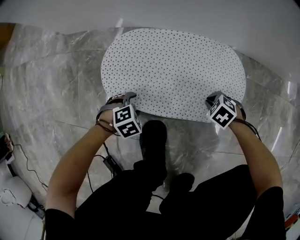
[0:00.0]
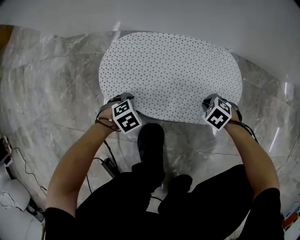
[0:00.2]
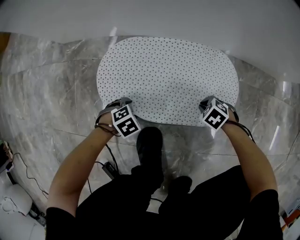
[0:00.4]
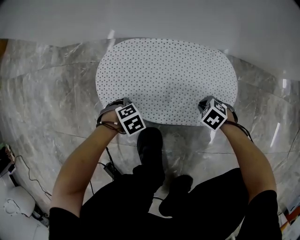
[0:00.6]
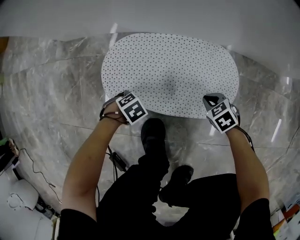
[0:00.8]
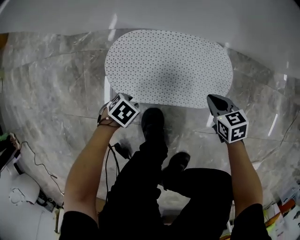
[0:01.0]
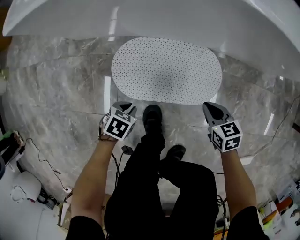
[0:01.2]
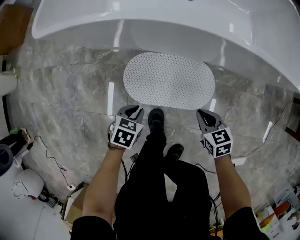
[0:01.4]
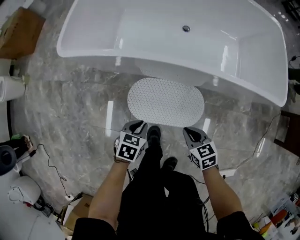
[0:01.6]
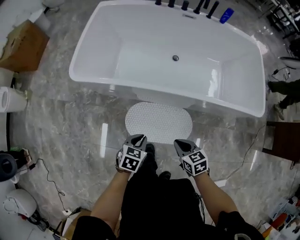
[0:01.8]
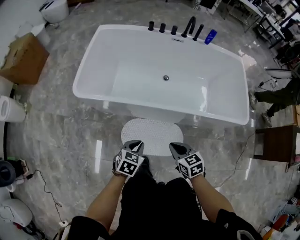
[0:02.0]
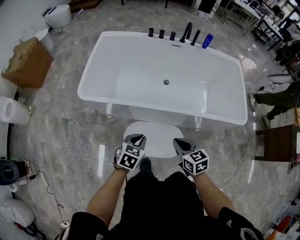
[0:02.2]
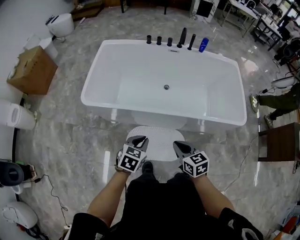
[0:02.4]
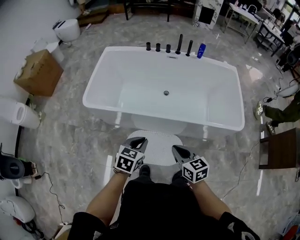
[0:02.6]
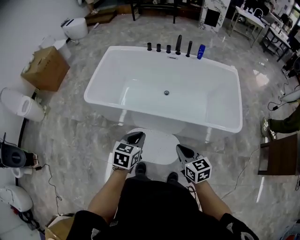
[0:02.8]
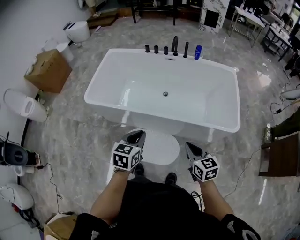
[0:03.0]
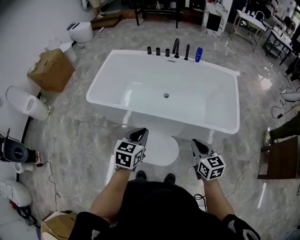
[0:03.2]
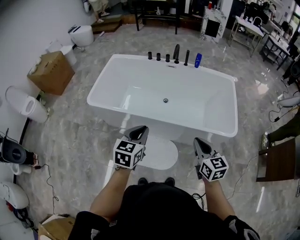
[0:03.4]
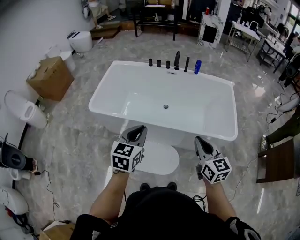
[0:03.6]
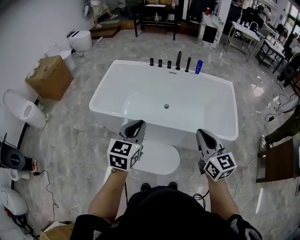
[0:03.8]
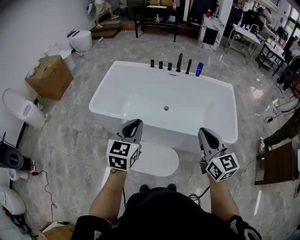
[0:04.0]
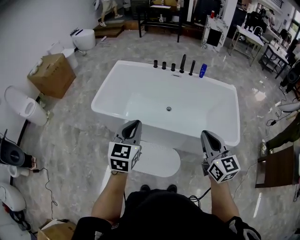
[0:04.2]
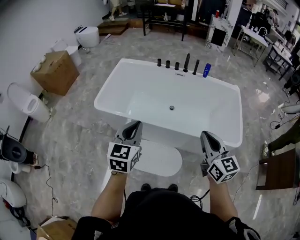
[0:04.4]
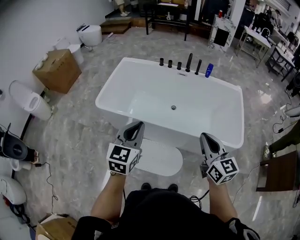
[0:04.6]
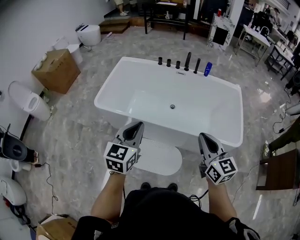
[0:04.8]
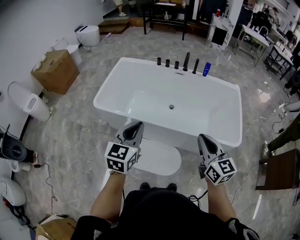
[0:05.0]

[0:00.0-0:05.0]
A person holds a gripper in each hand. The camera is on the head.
0:00.0 to 0:01.6: Both grippers move upward, some 60 cm. The right gripper angles its fingers upward, by roughly 30 degrees. The left gripper rotates around the line of its fingers by some 50 degrees, counterclockwise from behind, and closes up.
0:01.6 to 0:03.4: Both grippers travel together upward and to the right, roughly 50 cm. The right gripper tips its fingers upward by roughly 30 degrees, while the left gripper tips its fingers upward by about 30 degrees.
0:03.4 to 0:05.0: The left gripper travels to the left and upward by approximately 10 cm; the right gripper goes roughly 10 cm upward and to the left.

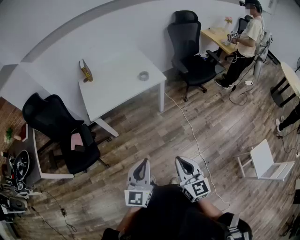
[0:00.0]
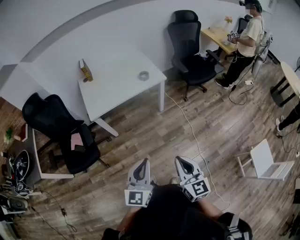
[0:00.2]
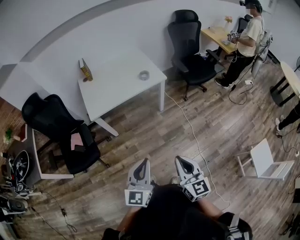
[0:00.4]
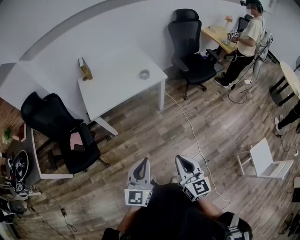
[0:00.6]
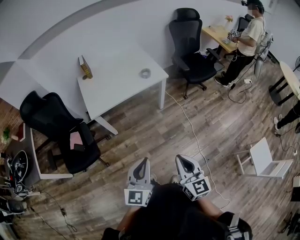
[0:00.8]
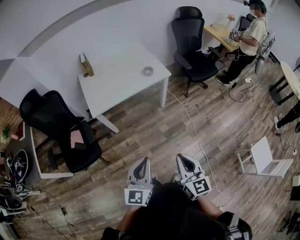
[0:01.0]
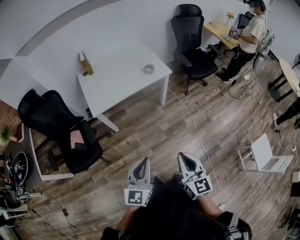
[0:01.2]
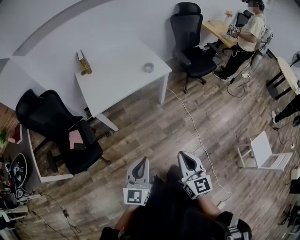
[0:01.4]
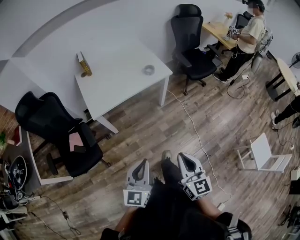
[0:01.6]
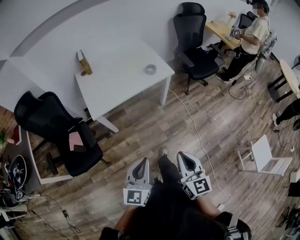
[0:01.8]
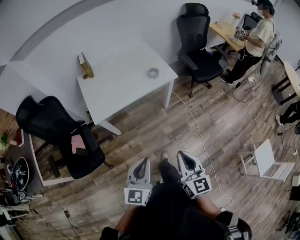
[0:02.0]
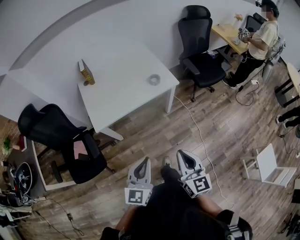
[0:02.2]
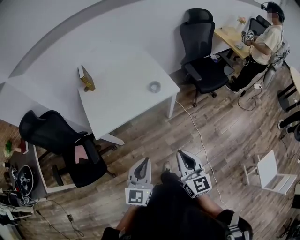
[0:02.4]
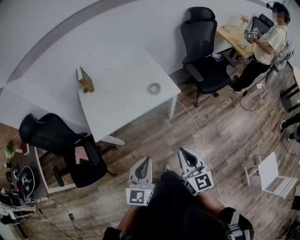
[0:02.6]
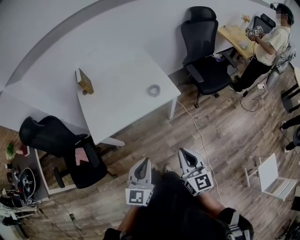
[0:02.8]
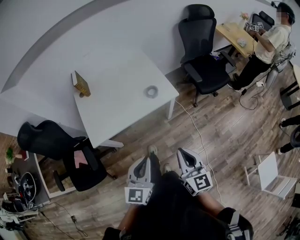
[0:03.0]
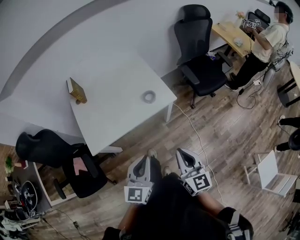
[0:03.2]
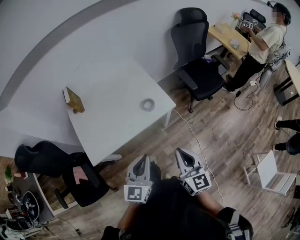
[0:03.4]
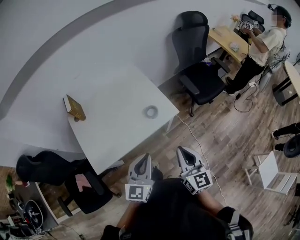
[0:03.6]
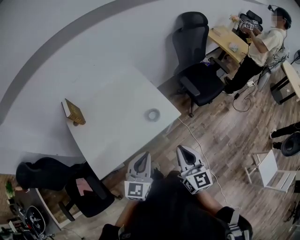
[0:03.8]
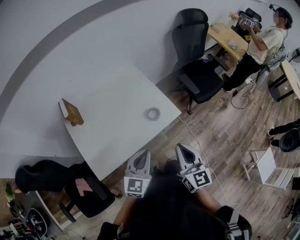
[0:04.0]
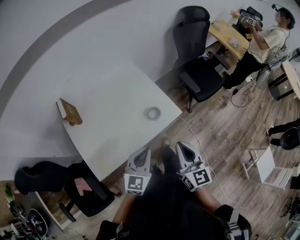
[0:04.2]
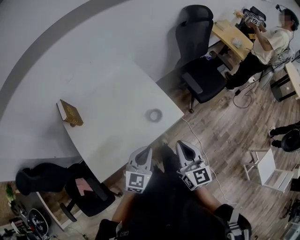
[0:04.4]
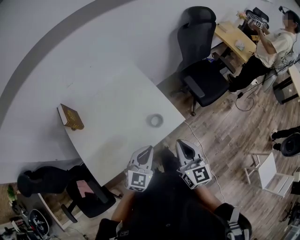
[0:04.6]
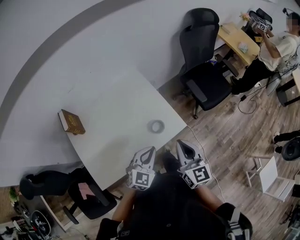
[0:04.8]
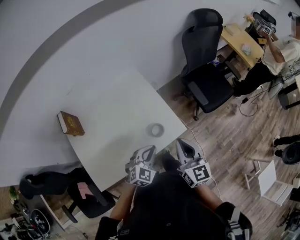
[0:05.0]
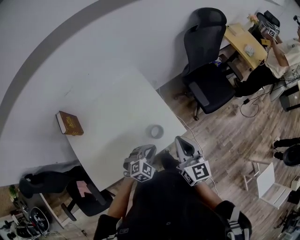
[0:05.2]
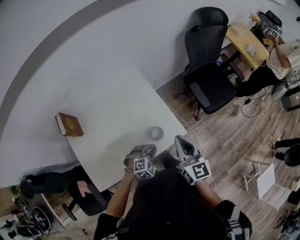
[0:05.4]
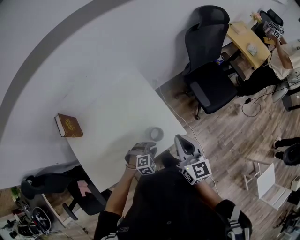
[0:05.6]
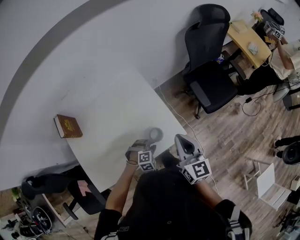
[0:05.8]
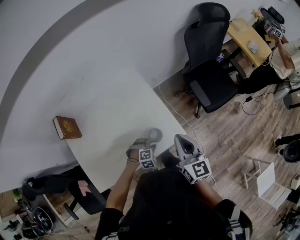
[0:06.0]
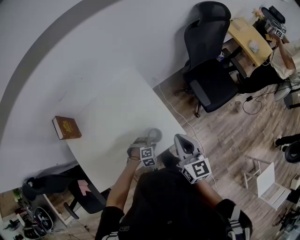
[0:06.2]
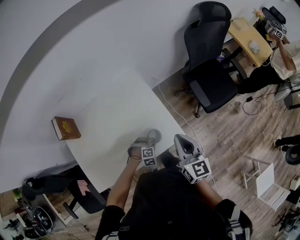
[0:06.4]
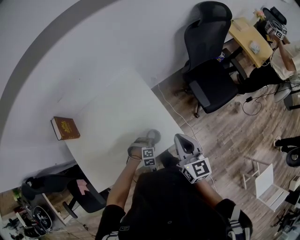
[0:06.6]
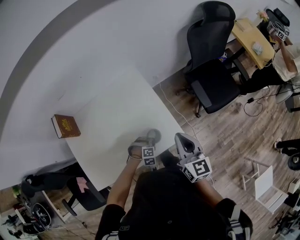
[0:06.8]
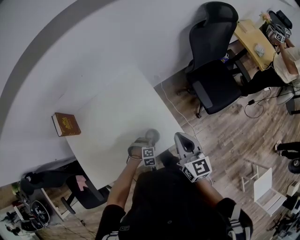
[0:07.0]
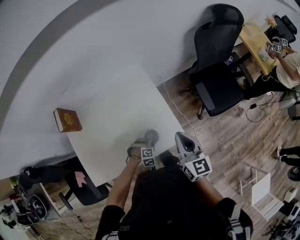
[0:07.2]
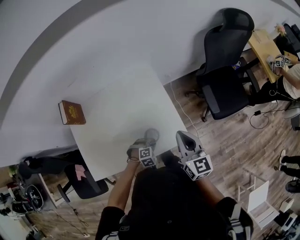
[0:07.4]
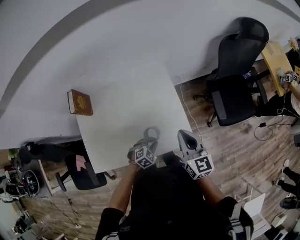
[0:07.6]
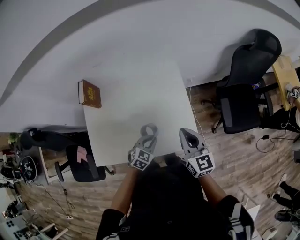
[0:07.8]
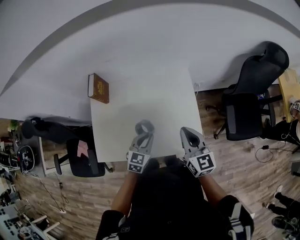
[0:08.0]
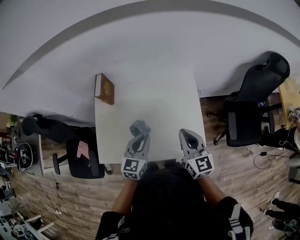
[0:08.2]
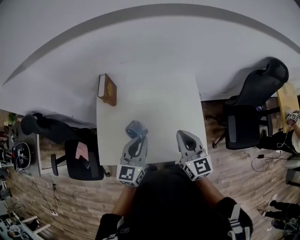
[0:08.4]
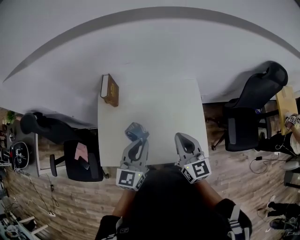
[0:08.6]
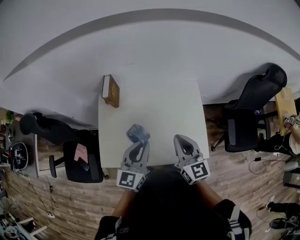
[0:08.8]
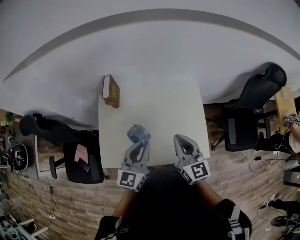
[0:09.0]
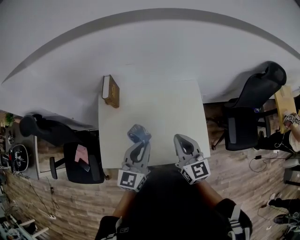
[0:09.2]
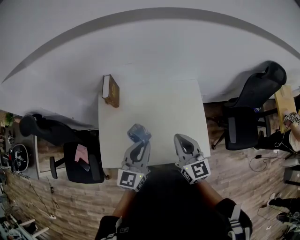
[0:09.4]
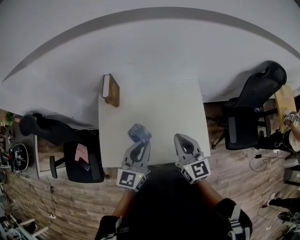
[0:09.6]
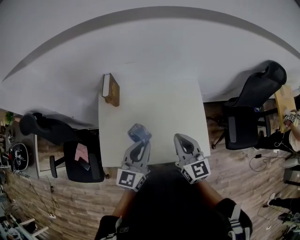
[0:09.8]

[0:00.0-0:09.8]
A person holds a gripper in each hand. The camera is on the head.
0:00.0 to 0:01.4: Both grippers travel together to the left, some 10 cm.
0:01.4 to 0:02.8: Both grippers travel together forward, roughly 25 cm.
0:02.8 to 0:04.2: Both grippers move forward, some 25 cm. The left gripper changes its angle by approximately 20 degrees.
0:04.2 to 0:05.6: The right gripper shifts approximately 20 cm forward; the left gripper shifts approximately 30 cm downward and forward, tips its fingers downward by some 40 degrees, and opens.
0:05.6 to 0:07.0: The right gripper changes place by roughly 5 cm. Meanwhile the left gripper heads downward, covering approximately 10 cm.
0:07.0 to 0:08.4: The right gripper shifts by about 20 cm, and rotates some 30 degrees, while the left gripper travels upward by approximately 35 cm, and tips its fingers upward by roughly 60 degrees.
0:08.4 to 0:09.8: The right gripper travels to the left by approximately 5 cm.

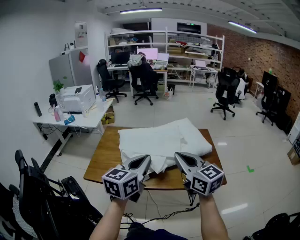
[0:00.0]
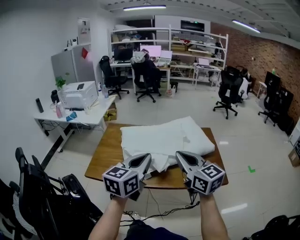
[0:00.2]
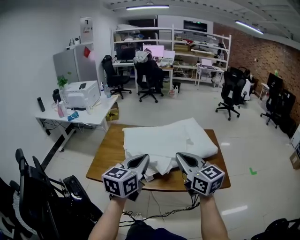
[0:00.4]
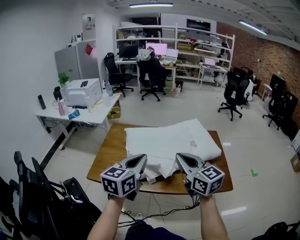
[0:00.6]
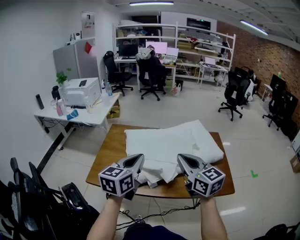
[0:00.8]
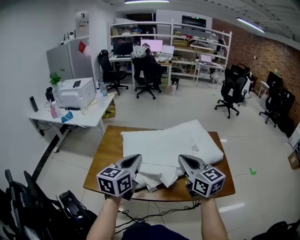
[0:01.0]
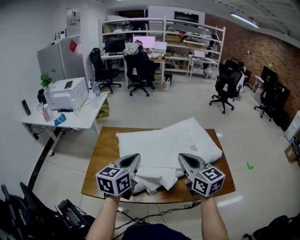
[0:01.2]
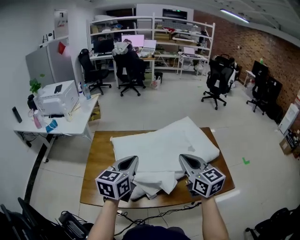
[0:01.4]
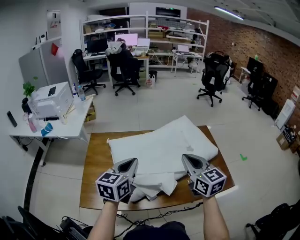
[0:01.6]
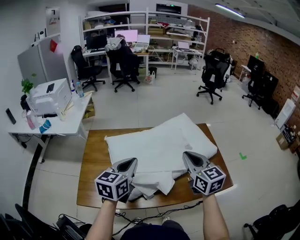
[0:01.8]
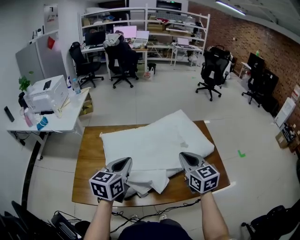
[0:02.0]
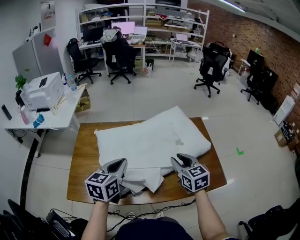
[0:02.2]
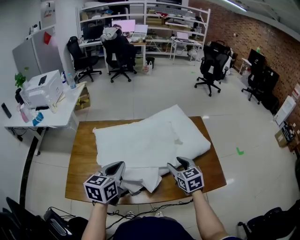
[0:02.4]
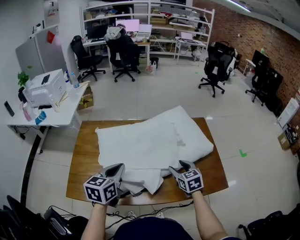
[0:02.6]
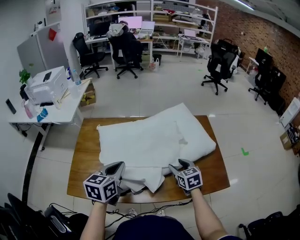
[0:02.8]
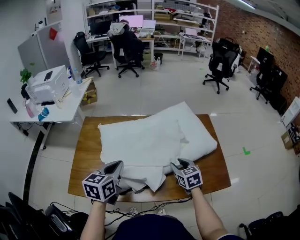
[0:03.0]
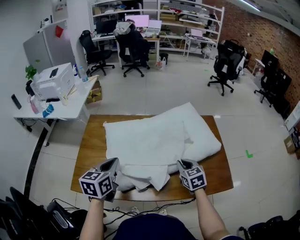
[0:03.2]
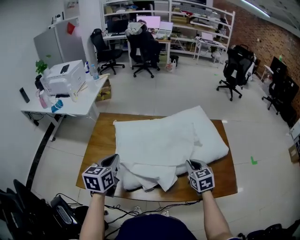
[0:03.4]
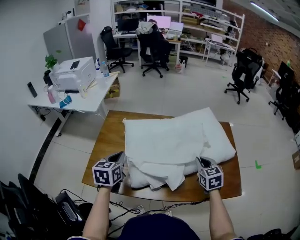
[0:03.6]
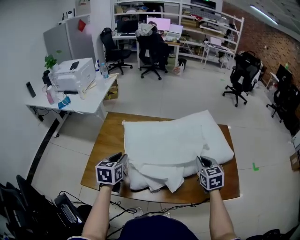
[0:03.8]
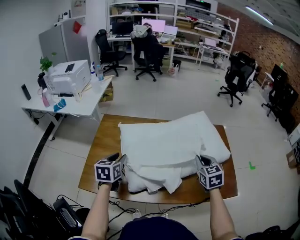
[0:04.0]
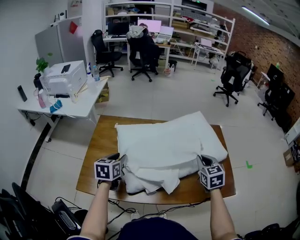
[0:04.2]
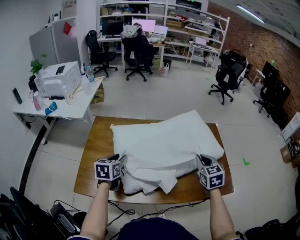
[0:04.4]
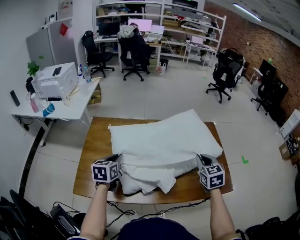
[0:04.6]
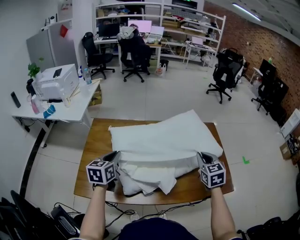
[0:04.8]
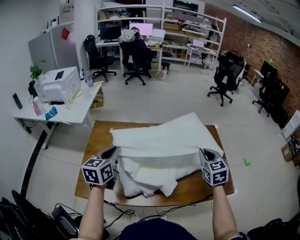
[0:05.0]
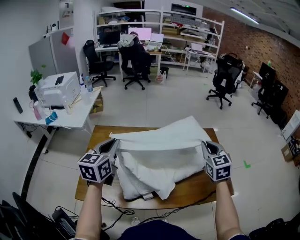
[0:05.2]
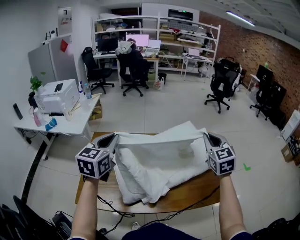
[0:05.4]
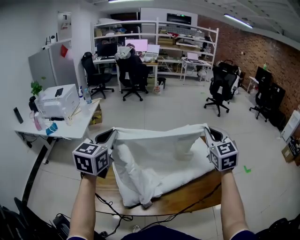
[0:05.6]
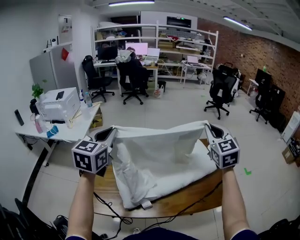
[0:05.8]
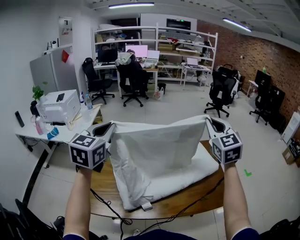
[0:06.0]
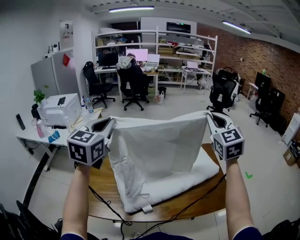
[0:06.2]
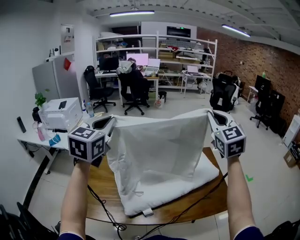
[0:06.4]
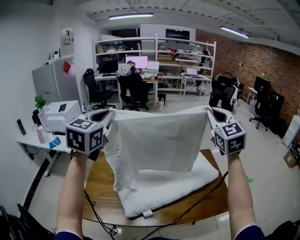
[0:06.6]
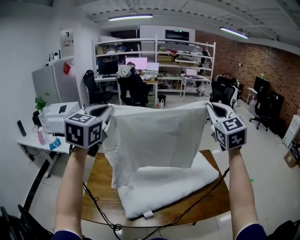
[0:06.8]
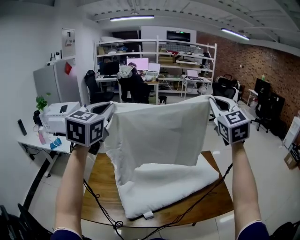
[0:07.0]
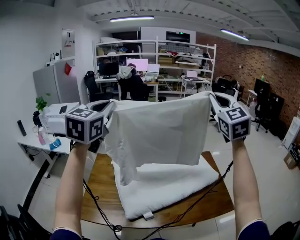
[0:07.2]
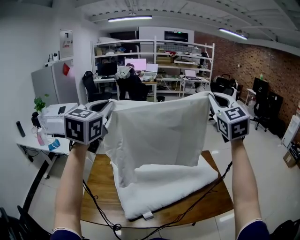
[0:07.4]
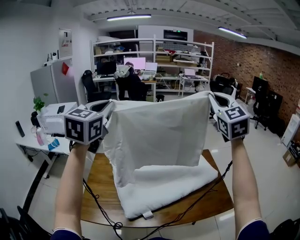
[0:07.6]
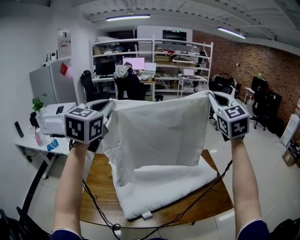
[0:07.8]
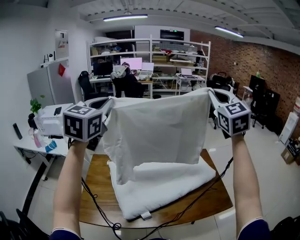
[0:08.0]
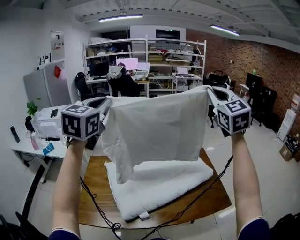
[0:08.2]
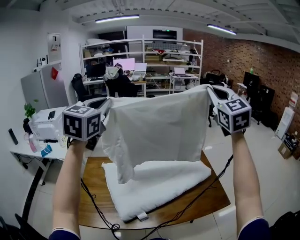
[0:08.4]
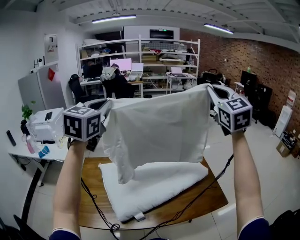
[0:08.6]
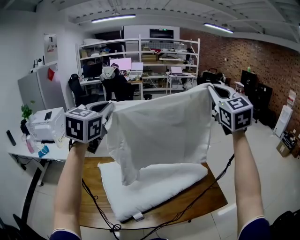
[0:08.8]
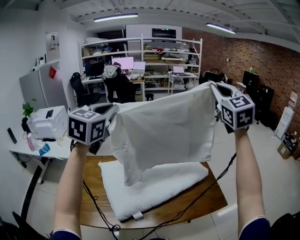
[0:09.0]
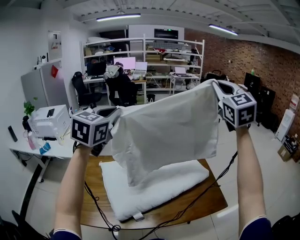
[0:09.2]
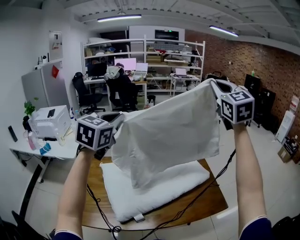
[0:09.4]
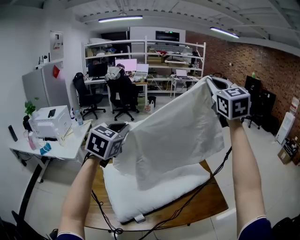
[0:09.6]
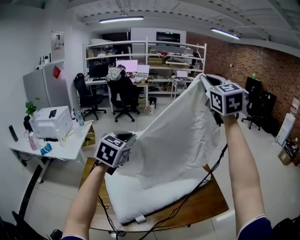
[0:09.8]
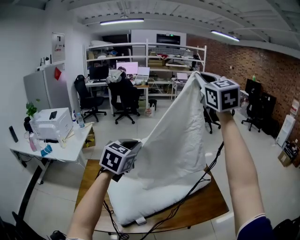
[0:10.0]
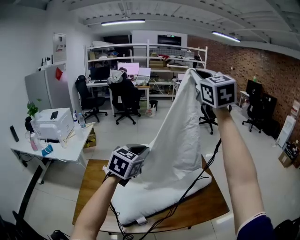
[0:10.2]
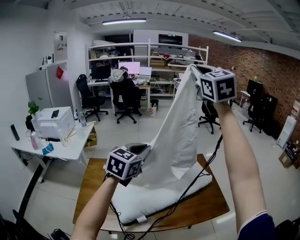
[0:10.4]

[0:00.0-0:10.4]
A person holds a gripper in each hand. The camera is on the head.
0:00.0 to 0:01.4: The right gripper travels forward by about 15 cm, while the left gripper goes roughly 20 cm forward and to the left.
0:01.4 to 0:03.0: The left gripper is displaced downward by some 10 cm. The right gripper is displaced downward by some 25 cm, changes its angle by roughly 30 degrees, and opens up.
0:03.0 to 0:04.4: The right gripper is displaced upward by approximately 10 cm, and closes its fingers, while the left gripper is displaced to the left, downward and forward by about 15 cm, and opens its fingers.
0:04.4 to 0:06.0: Both grippers travel together upward, some 30 cm. The left gripper rotates about 40 degrees, and closes its fingers. Meanwhile the right gripper turns by approximately 30 degrees.
0:06.0 to 0:07.4: The two grippers go about 15 cm upward.
0:07.4 to 0:09.0: The two grippers go about 10 cm to the right.
0:09.0 to 0:10.4: The left gripper is displaced downward and to the right by some 15 cm. Meanwhile the right gripper goes approximately 15 cm to the left and upward.
